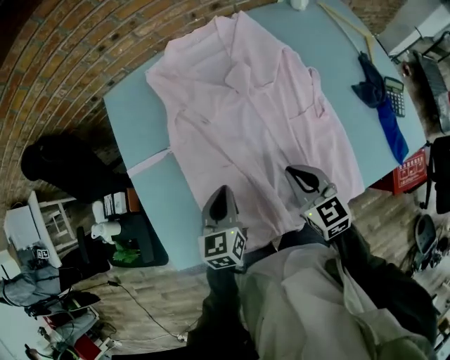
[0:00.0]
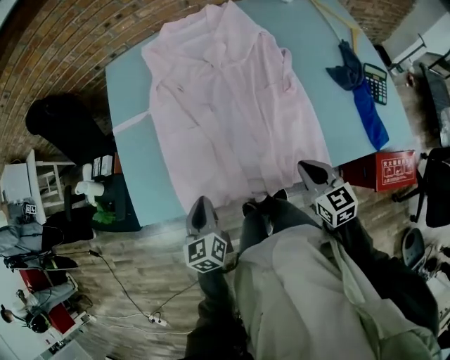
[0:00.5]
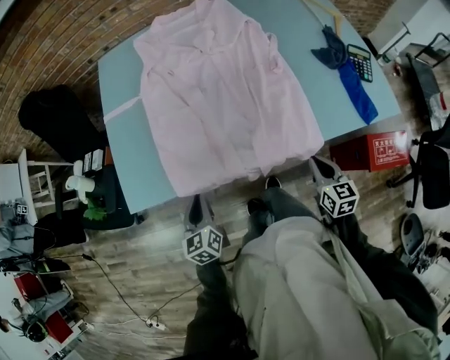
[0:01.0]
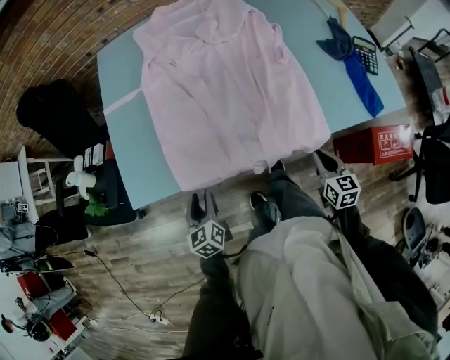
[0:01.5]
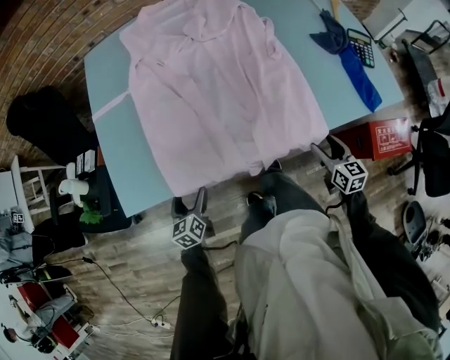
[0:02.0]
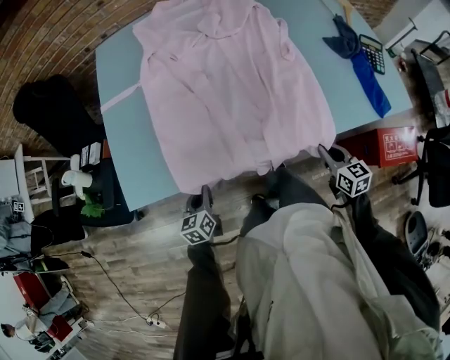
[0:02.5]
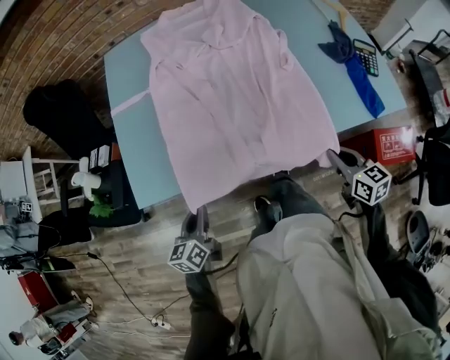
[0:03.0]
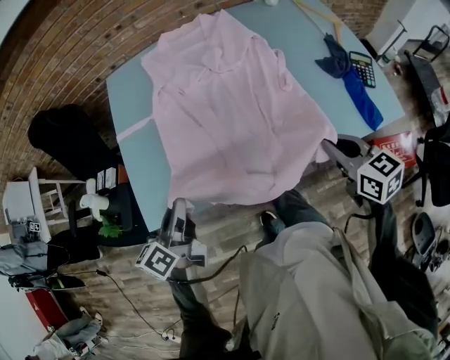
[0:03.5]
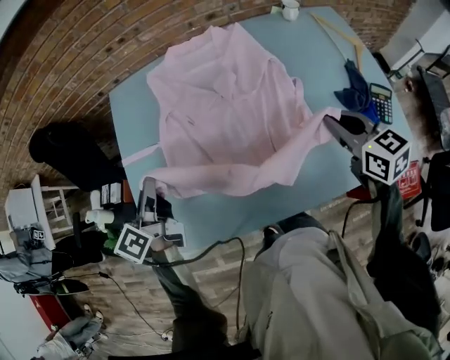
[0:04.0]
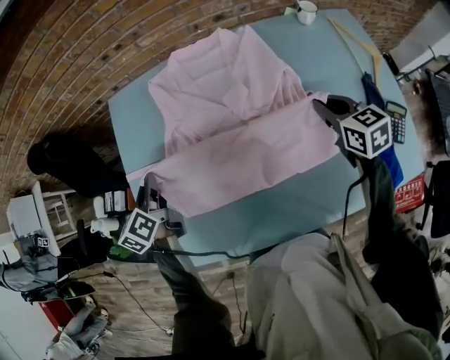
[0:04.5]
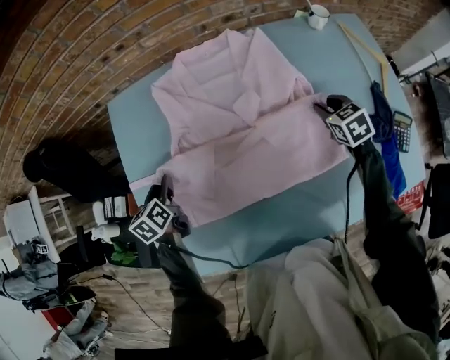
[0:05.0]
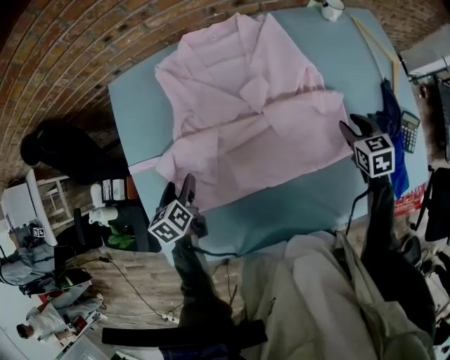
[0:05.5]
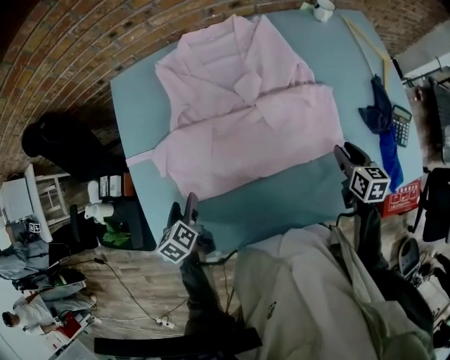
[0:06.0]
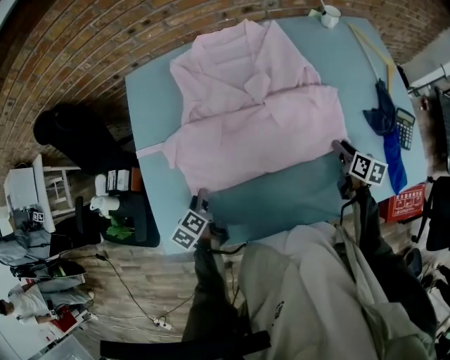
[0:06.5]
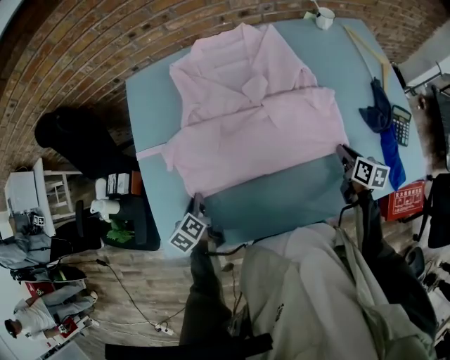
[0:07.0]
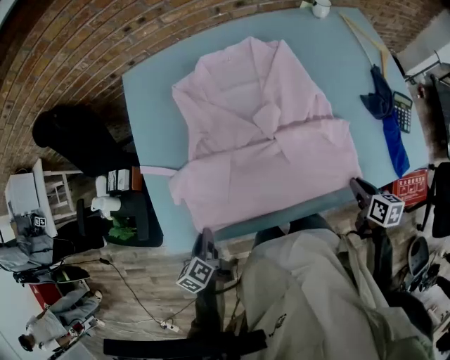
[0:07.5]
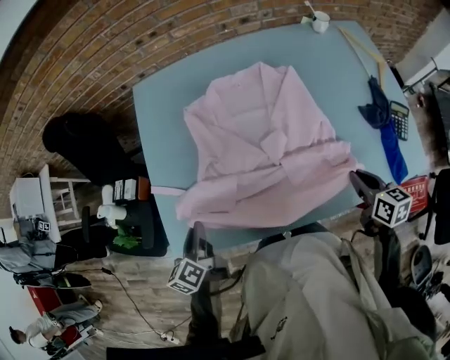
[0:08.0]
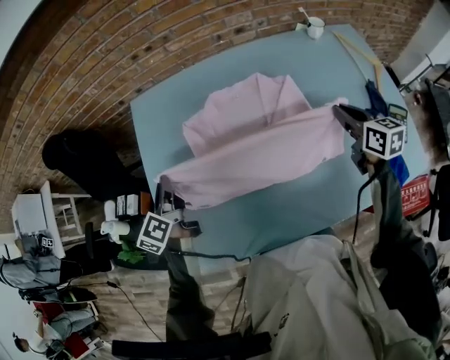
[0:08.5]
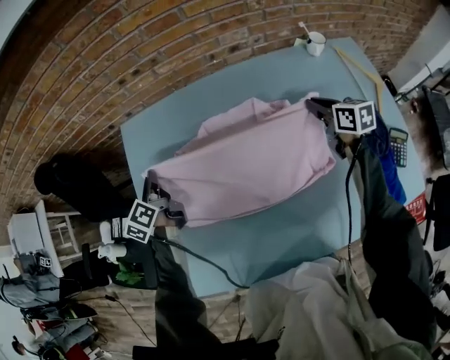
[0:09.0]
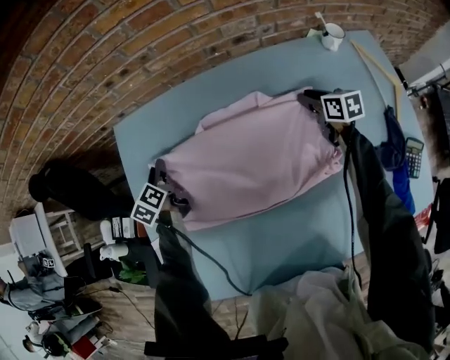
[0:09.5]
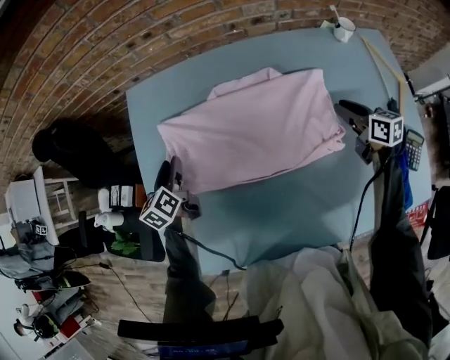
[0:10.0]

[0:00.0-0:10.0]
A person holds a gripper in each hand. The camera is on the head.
0:00.0 to 0:02.0: The left gripper goes some 30 cm backward, downward and to the left, and opens up; the right gripper is displaced to the right, backward and downward by approximately 35 cm, and opens.
0:02.0 to 0:04.0: Both grippers travel together upward and forward, some 40 cm. The left gripper rotates roughly 30 degrees, and closes; the right gripper closes its fingers.
0:04.0 to 0:06.0: Both grippers move downward, approximately 20 cm. The right gripper goes forward and returns, approximately 20 cm each way, swivels roughly 30 degrees, and opens its fingers. The left gripper tilts its fingers about 40 degrees downward, and opens its fingers.
0:06.0 to 0:08.0: The two grippers go about 15 cm backward and upward. The left gripper rotates roughly 20 degrees, and closes up. The right gripper closes its fingers.
0:08.0 to 0:10.0: Both grippers move forward, roughly 30 cm. The right gripper opens its fingers. Meanwhile the left gripper opens.

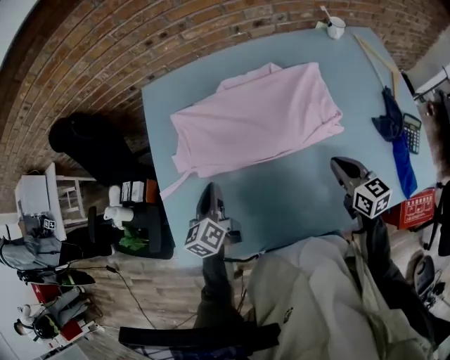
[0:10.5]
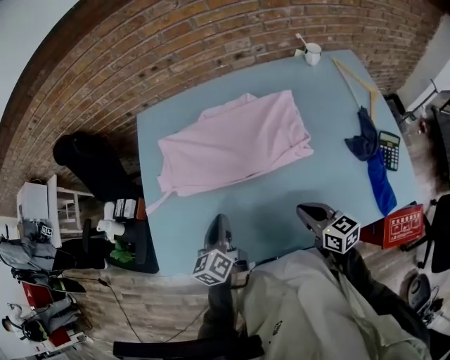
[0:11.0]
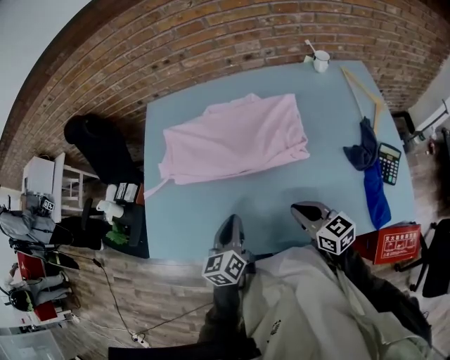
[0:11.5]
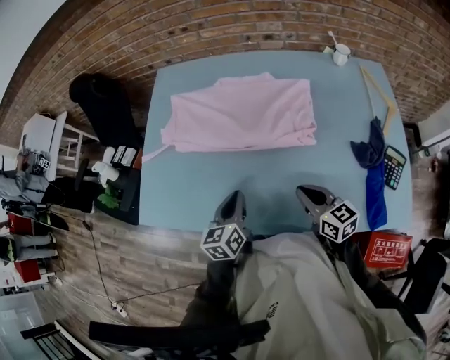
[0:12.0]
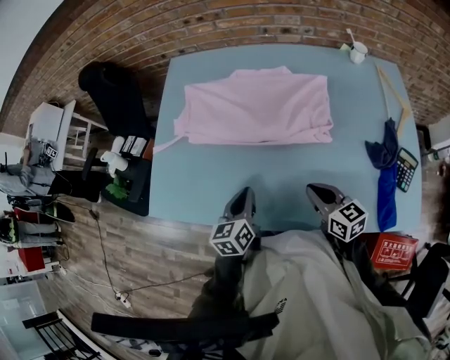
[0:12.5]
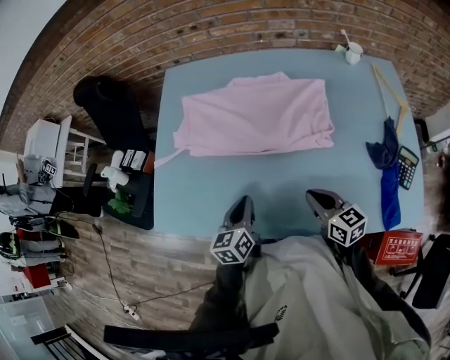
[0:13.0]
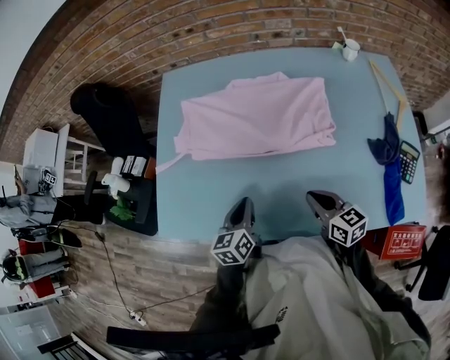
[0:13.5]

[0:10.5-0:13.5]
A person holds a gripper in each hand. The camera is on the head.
0:10.5 to 0:12.0: The left gripper shifts roughly 25 cm backward and to the right. Meanwhile the right gripper shifts roughly 10 cm backward.
0:12.0 to 0:13.5: The left gripper heads to the left, covering some 5 cm.

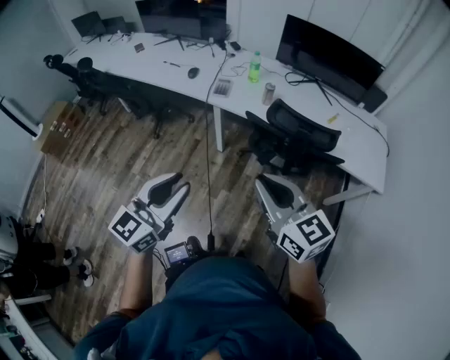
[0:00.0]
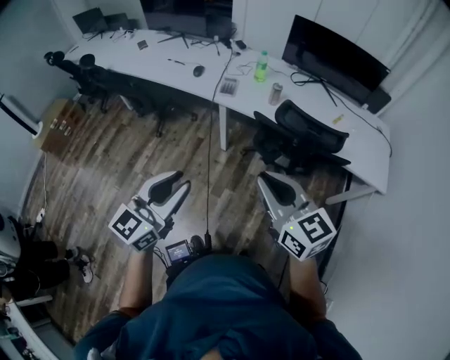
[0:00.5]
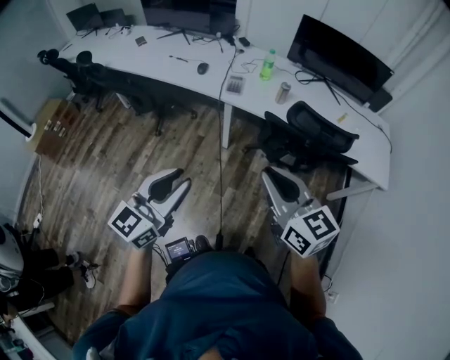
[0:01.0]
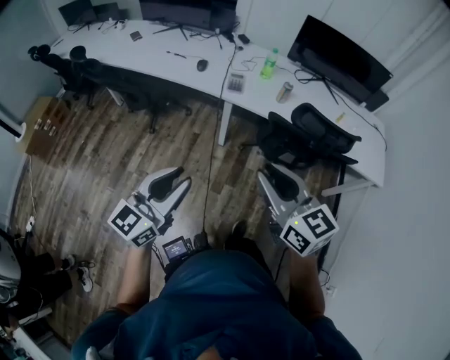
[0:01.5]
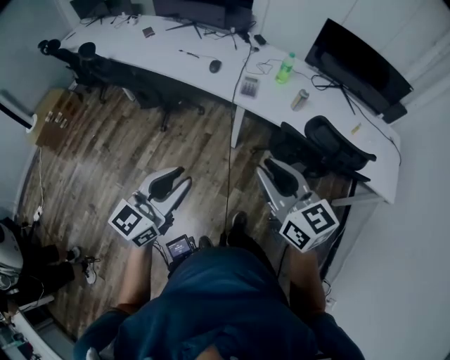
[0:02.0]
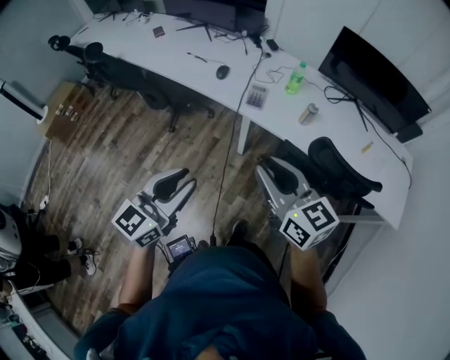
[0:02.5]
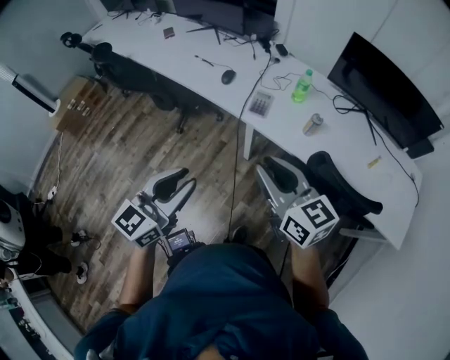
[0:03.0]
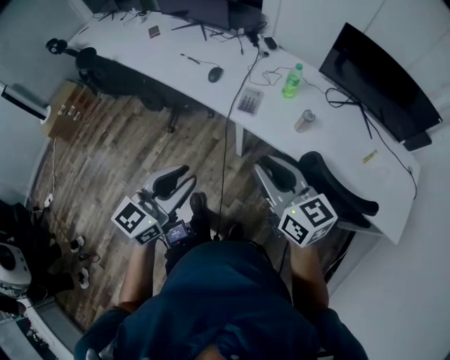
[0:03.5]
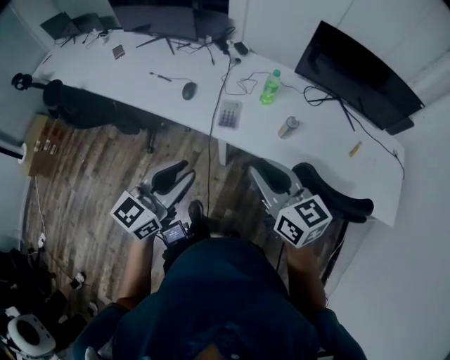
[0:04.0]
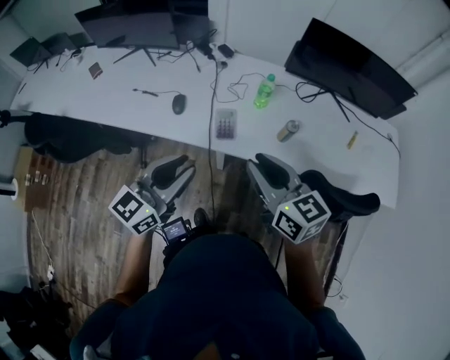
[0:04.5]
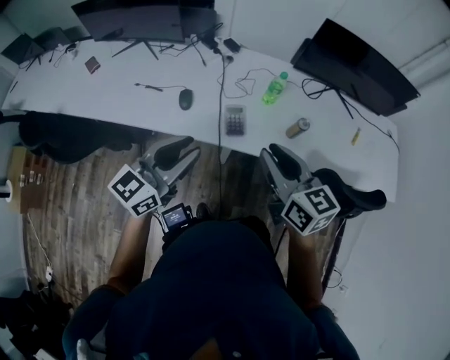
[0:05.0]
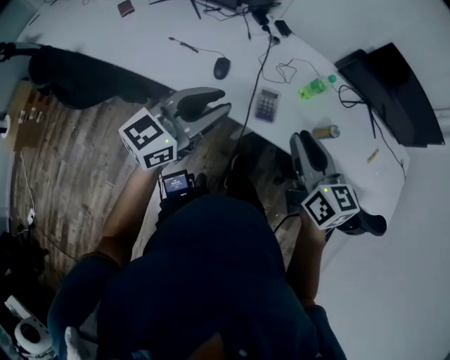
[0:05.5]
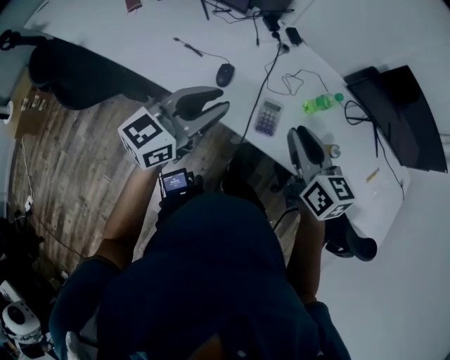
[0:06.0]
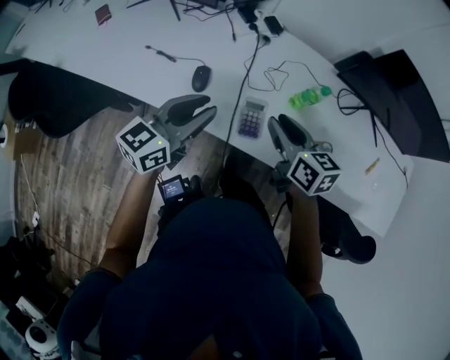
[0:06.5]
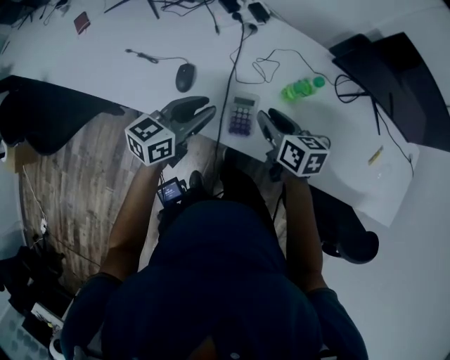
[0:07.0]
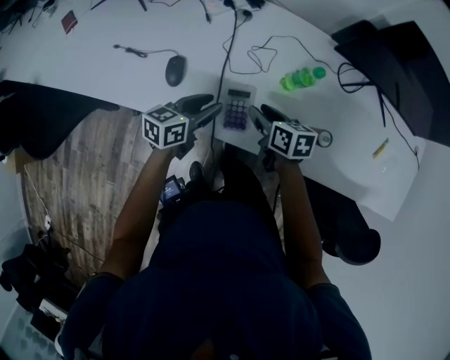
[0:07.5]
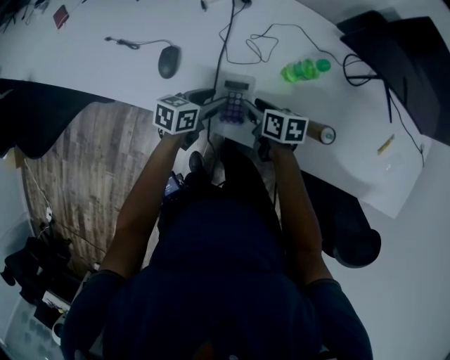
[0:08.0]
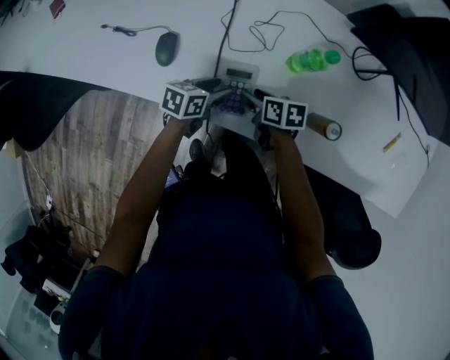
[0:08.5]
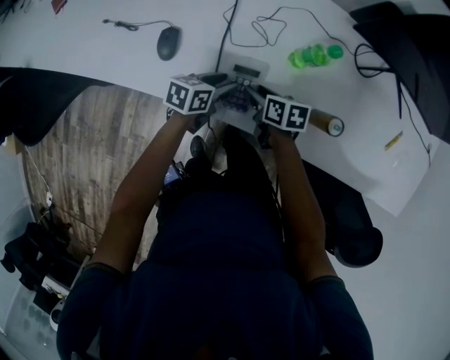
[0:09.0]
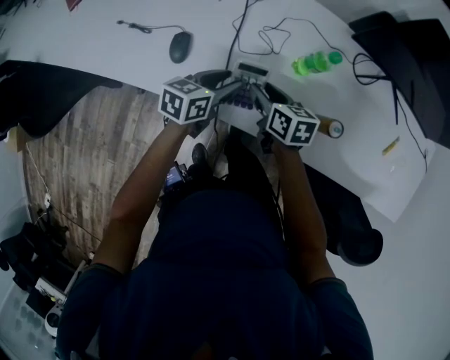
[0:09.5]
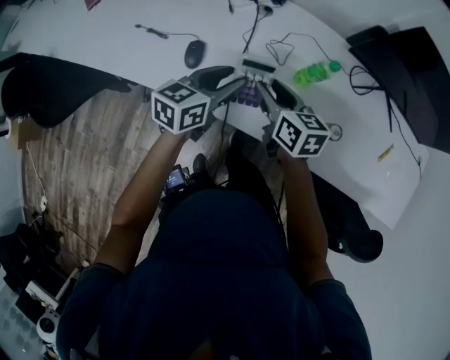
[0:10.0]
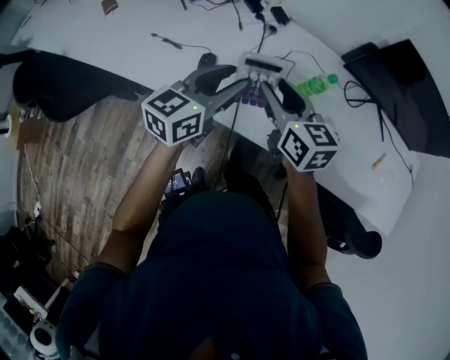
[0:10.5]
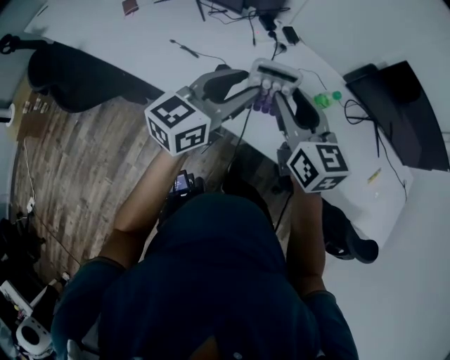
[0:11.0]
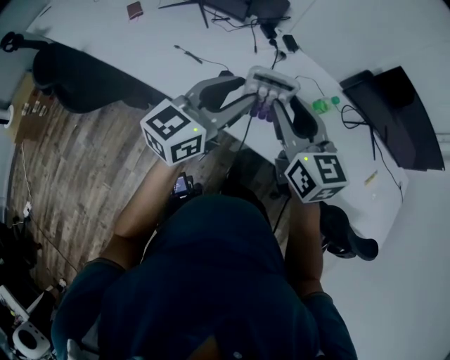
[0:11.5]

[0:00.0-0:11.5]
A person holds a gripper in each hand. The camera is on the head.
0:00.0 to 0:02.0: Both grippers travel together to the left and forward, roughly 20 cm.
0:02.0 to 0:04.0: The left gripper travels forward and to the right by about 30 cm. The right gripper moves forward, approximately 25 cm.
0:04.0 to 0:06.0: Both grippers travel together forward and to the left, approximately 25 cm.
0:06.0 to 0:07.5: The left gripper is displaced downward, forward and to the right by approximately 30 cm, and rotates approximately 30 degrees. The right gripper shifts some 25 cm downward and forward, and changes its angle by roughly 30 degrees.
0:07.5 to 0:09.5: The right gripper goes downward and returns, approximately 10 cm each way, while the left gripper reaches about 10 cm downward, then returns.
0:09.5 to 0:11.5: The left gripper heads upward and to the left, covering about 30 cm, and tilts its fingers roughly 30 degrees upward. The right gripper moves upward, about 30 cm, and changes its angle by about 40 degrees.

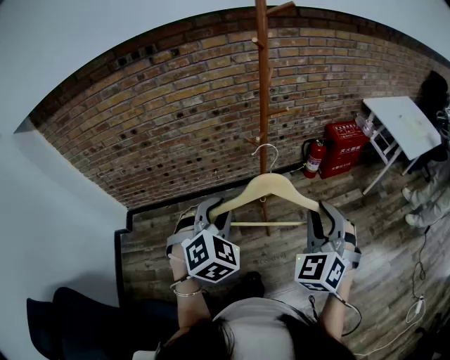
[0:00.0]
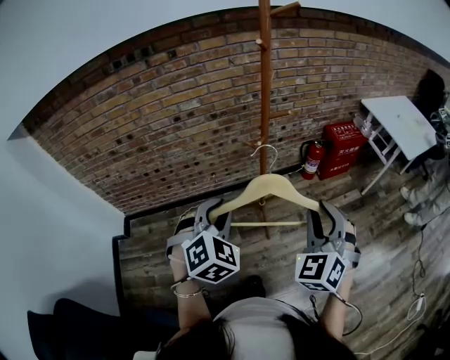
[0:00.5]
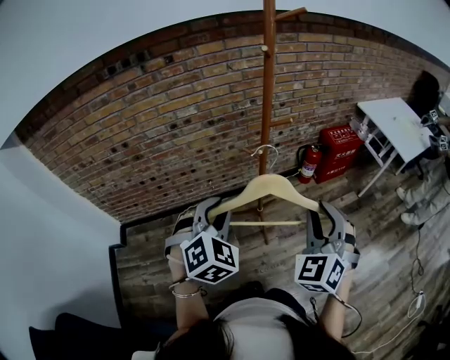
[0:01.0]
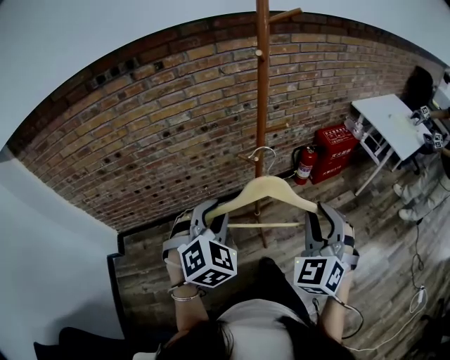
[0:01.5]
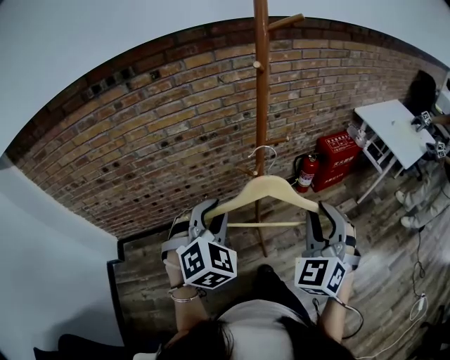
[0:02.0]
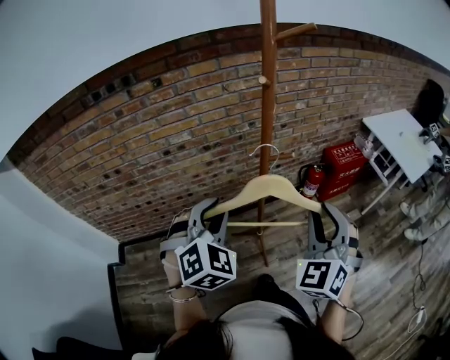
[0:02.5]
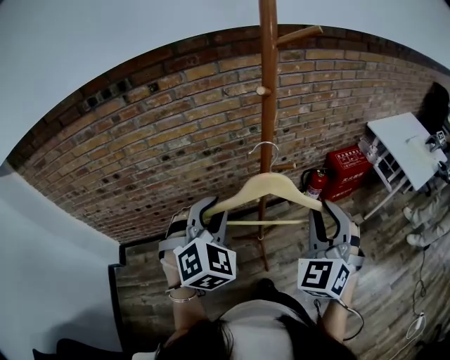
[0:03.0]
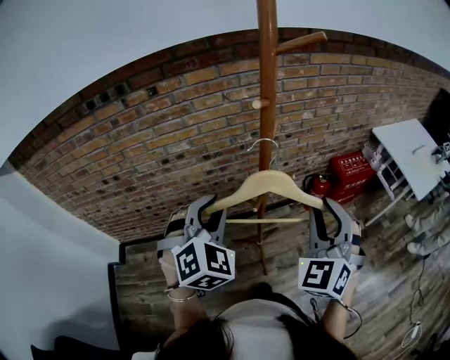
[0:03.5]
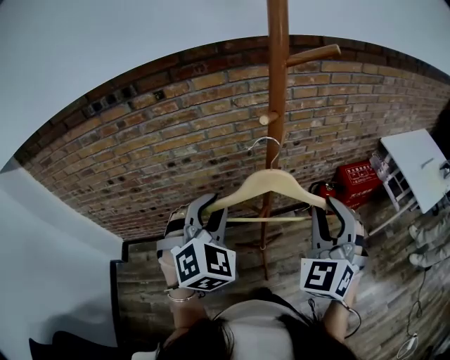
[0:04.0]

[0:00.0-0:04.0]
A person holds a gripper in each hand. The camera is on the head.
0:00.0 to 0:02.0: The grippers both shift forward by some 15 cm.
0:02.0 to 0:04.0: The left gripper goes some 15 cm forward and upward. The right gripper moves forward, about 20 cm.
